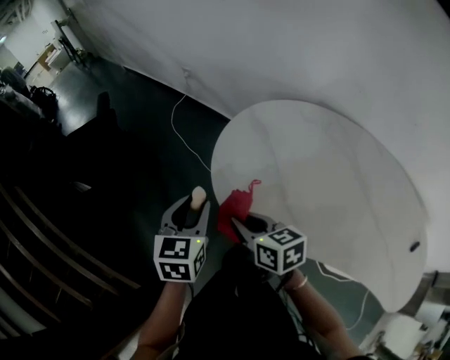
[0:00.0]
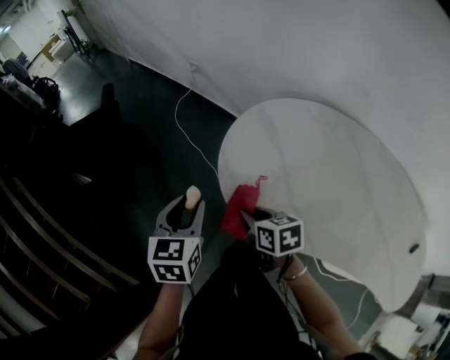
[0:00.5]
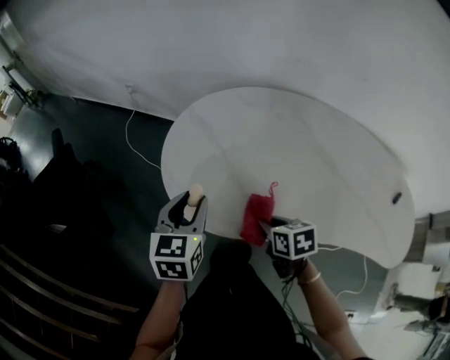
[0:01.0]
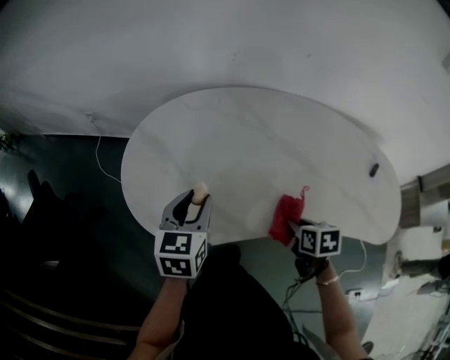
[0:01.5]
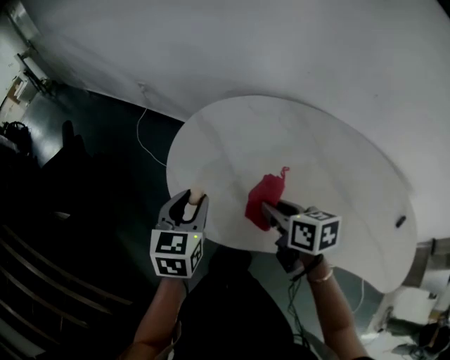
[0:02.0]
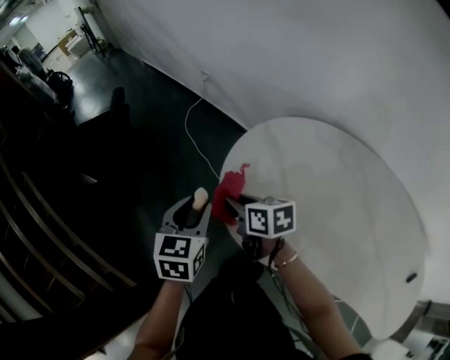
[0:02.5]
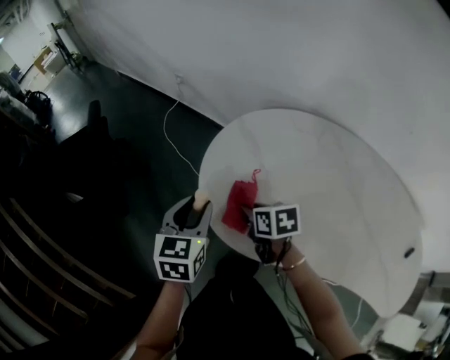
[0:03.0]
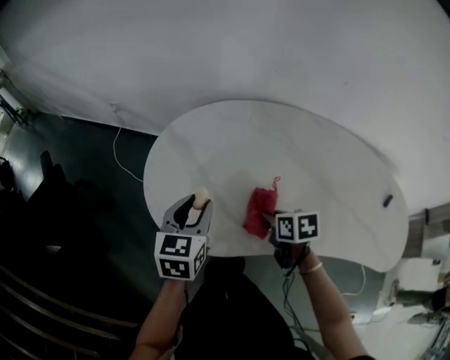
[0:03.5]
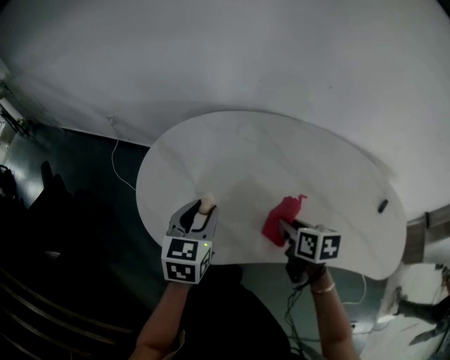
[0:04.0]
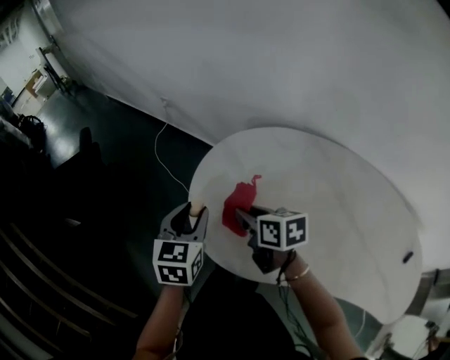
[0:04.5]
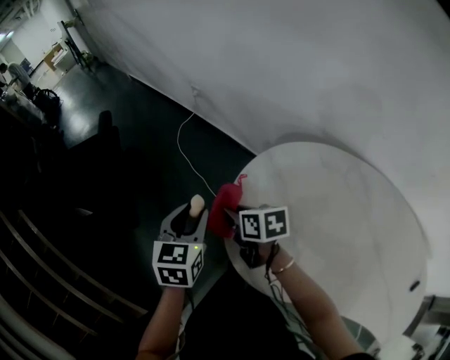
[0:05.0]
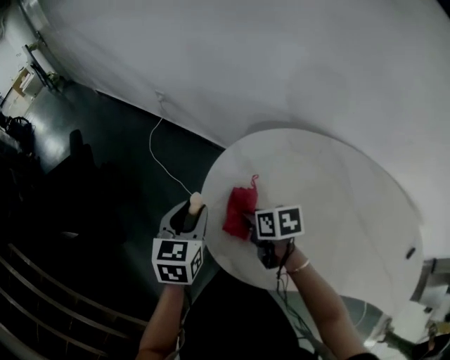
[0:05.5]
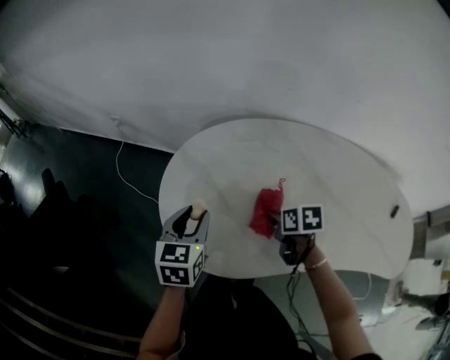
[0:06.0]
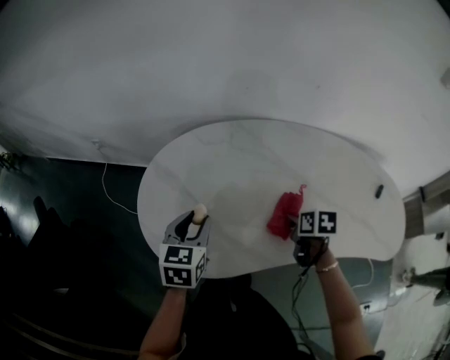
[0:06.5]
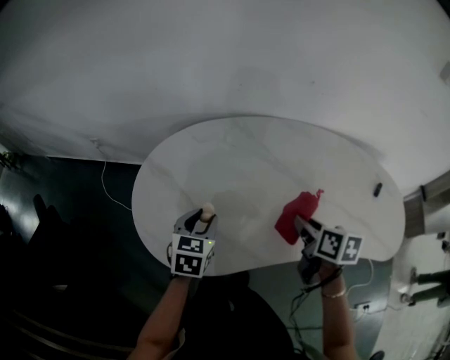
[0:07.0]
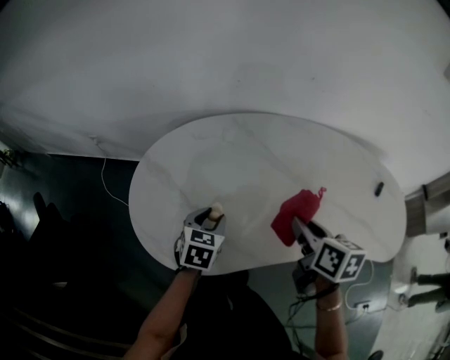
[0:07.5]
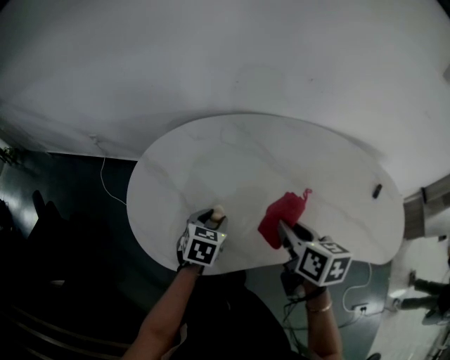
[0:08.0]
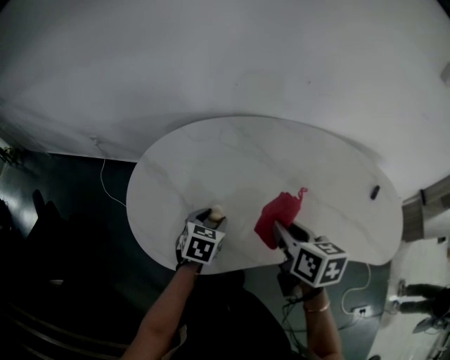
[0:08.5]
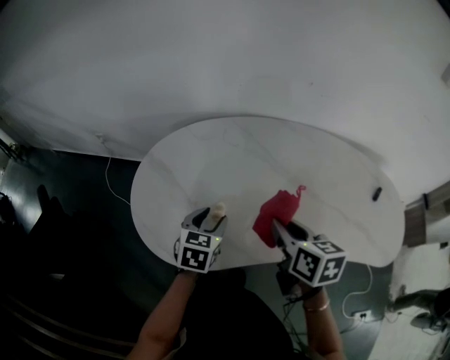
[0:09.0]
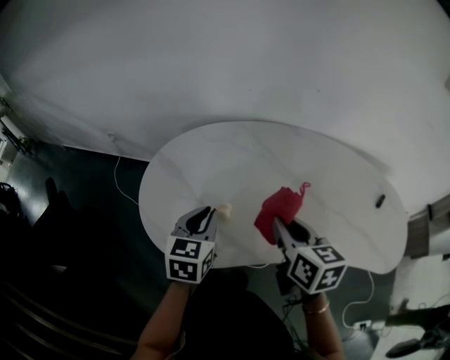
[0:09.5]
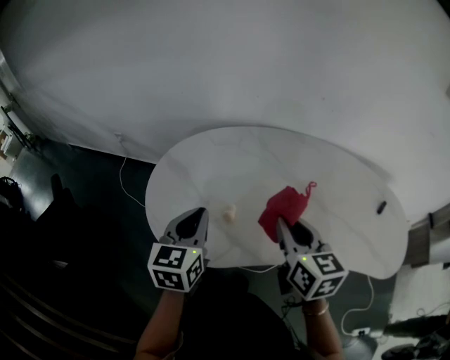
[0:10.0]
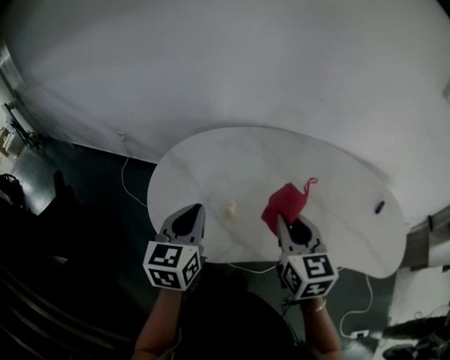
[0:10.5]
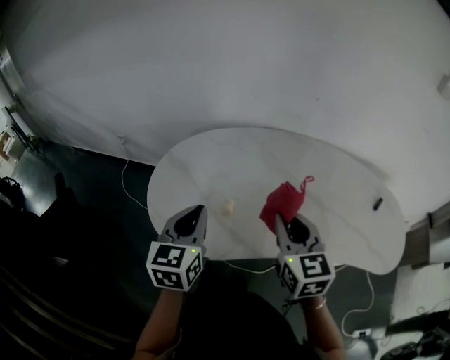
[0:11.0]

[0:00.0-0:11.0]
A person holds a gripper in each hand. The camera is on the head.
0:00.0 to 0:02.0: The right gripper goes downward and returns, roughly 10 cm each way.
0:02.0 to 0:03.5: The right gripper goes roughly 10 cm downward, and rotates roughly 20 degrees.
0:03.5 to 0:05.5: The left gripper moves about 20 cm. Meanwhile the right gripper travels upward and back again, some 10 cm each way.
0:05.5 to 0:07.5: The left gripper shifts by roughly 30 cm, and changes its angle by roughly 40 degrees. The right gripper moves some 40 cm, and rotates some 50 degrees.
0:07.5 to 0:09.0: The grippers stay close to where they were, moving slightly.
0:09.0 to 0:11.0: The right gripper heads upward, covering about 5 cm, and rotates approximately 30 degrees; the left gripper heads upward, covering some 15 cm, turns by some 20 degrees, and closes.

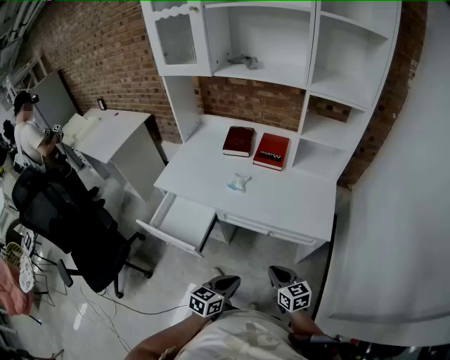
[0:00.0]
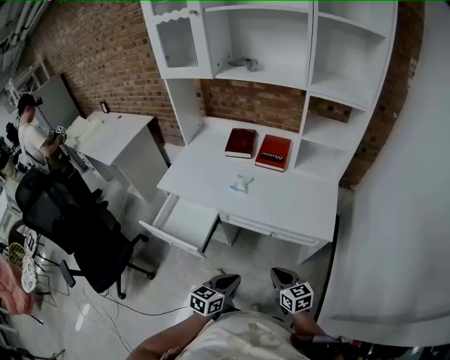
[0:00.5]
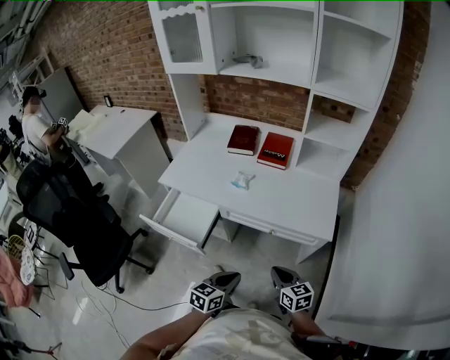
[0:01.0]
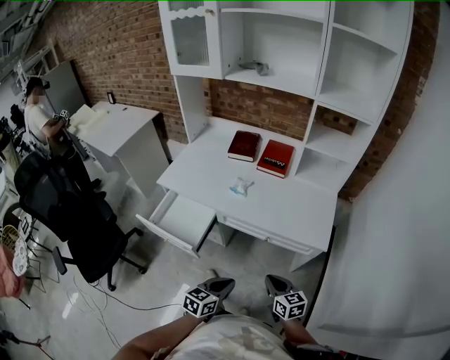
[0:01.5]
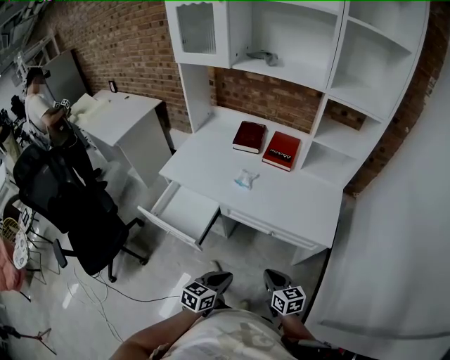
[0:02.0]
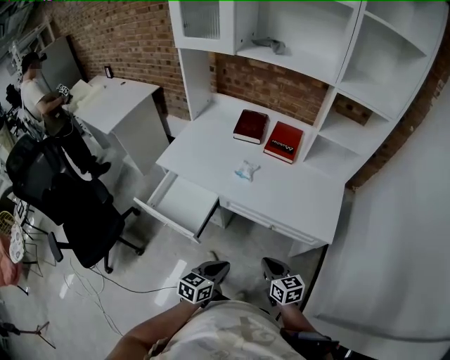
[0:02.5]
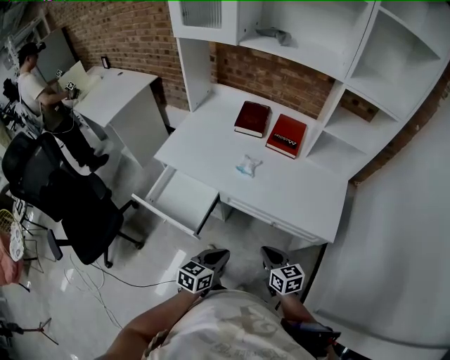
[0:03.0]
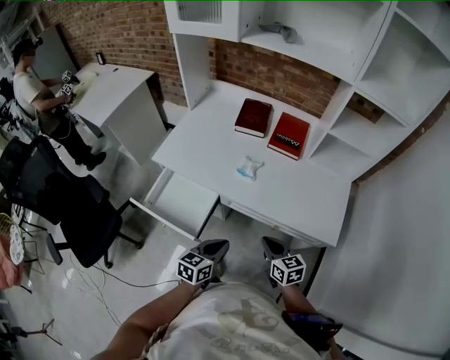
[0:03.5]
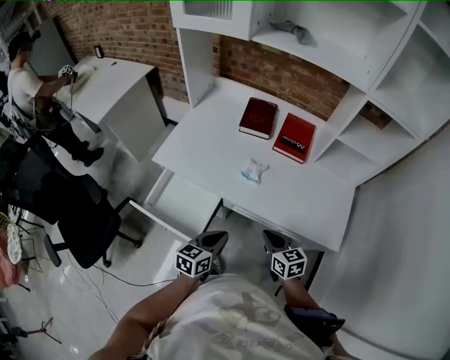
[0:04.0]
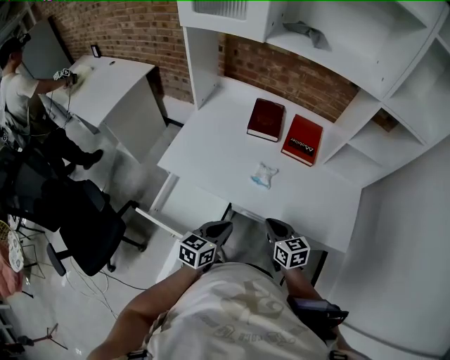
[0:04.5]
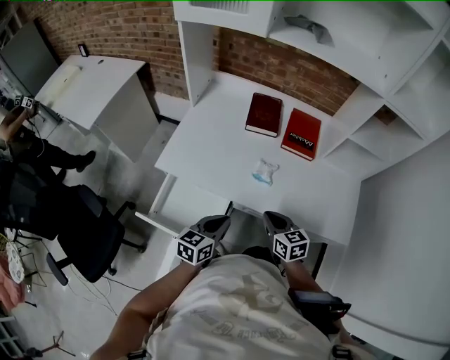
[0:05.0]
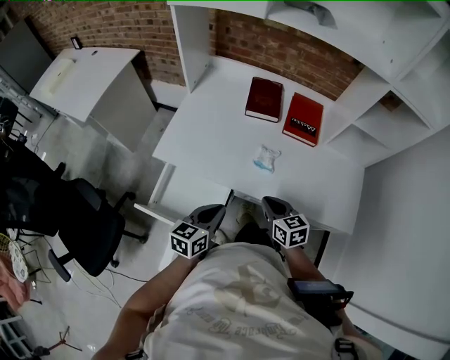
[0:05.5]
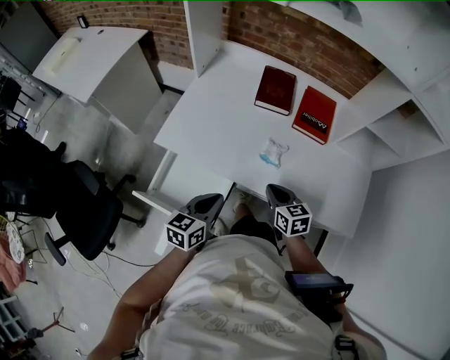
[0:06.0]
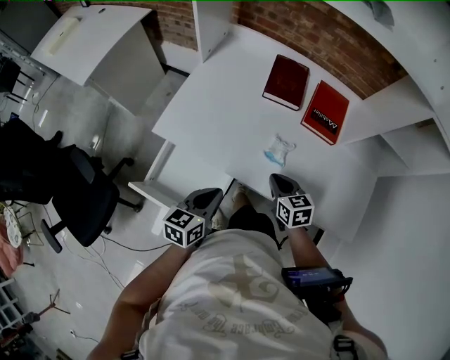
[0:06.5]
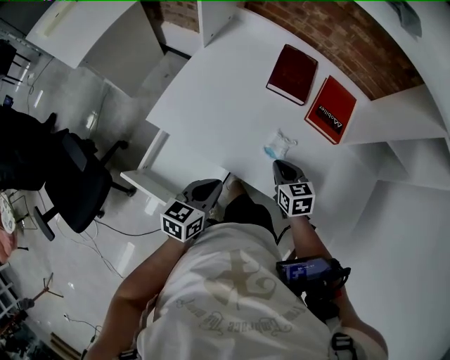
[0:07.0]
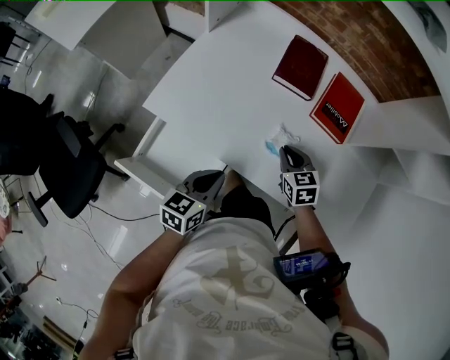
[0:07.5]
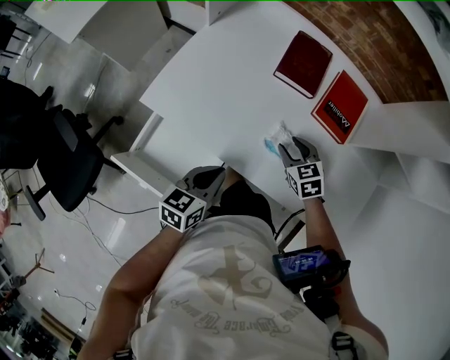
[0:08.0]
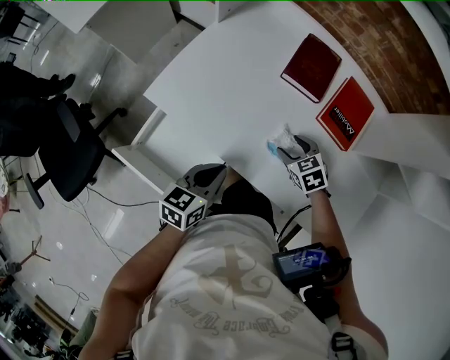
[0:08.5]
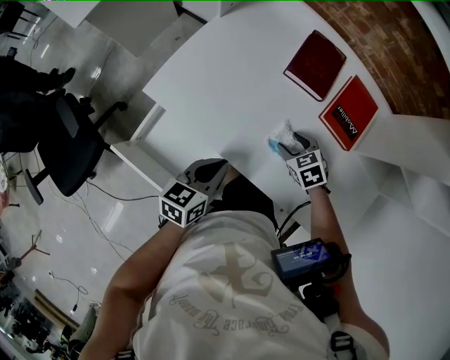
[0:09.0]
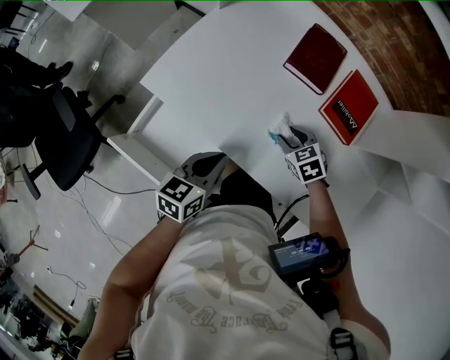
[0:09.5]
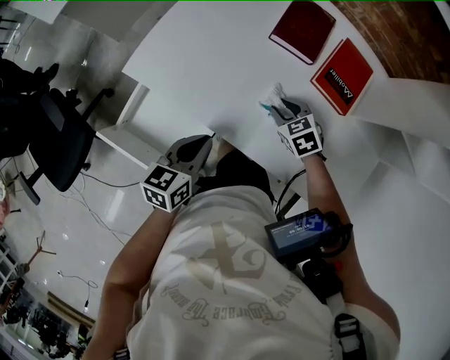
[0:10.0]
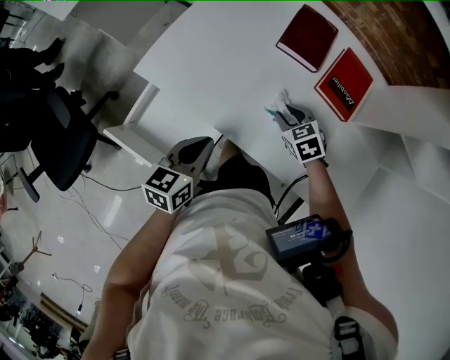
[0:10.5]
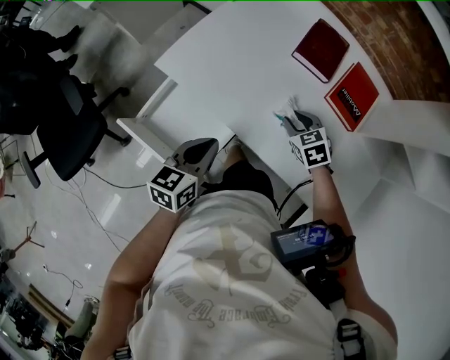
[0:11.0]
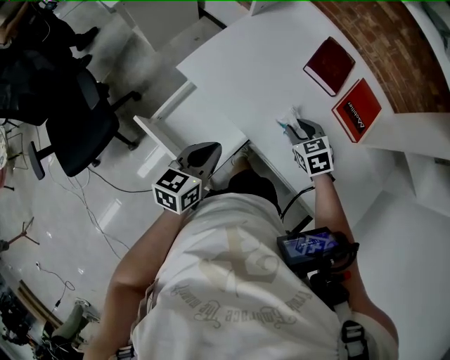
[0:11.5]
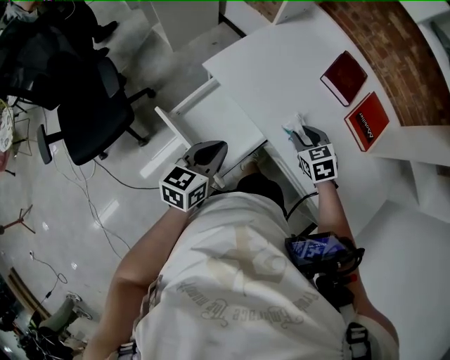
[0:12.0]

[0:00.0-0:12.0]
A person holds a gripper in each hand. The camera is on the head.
0:00.0 to 0:02.0: The grippers move only a little.
0:02.0 to 0:04.0: The two grippers go about 20 cm forward and to the left.
0:04.0 to 0:06.0: The left gripper is displaced to the left and forward by some 15 cm. Meanwhile the right gripper shifts some 15 cm forward and to the left.
0:06.0 to 0:08.0: The right gripper moves forward, approximately 15 cm, swivels about 30 degrees, and opens. The left gripper travels forward by about 5 cm.
0:08.0 to 0:10.0: The grippers move only a little.
0:10.0 to 0:12.0: The left gripper heads to the left and backward, covering some 15 cm. Meanwhile the right gripper travels to the left, upward and backward by roughly 15 cm.

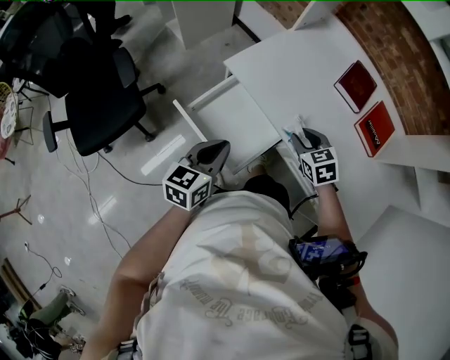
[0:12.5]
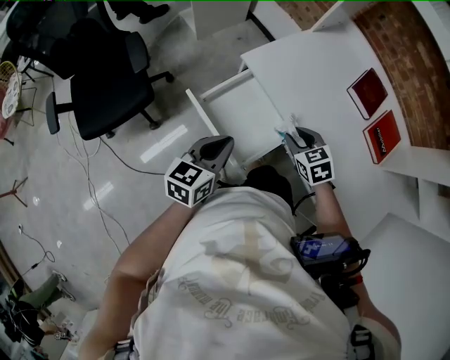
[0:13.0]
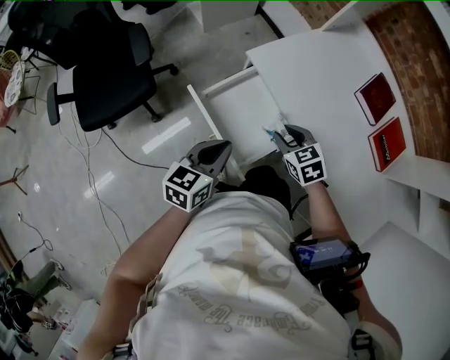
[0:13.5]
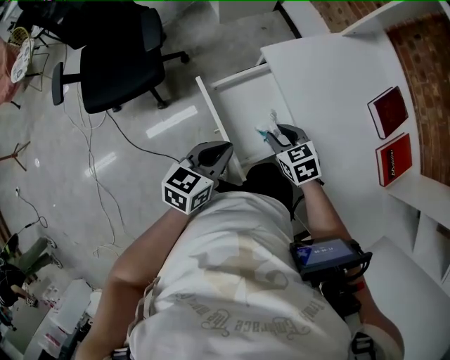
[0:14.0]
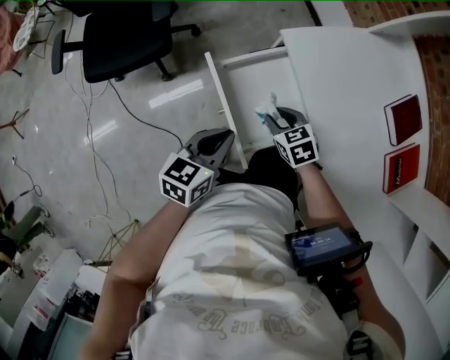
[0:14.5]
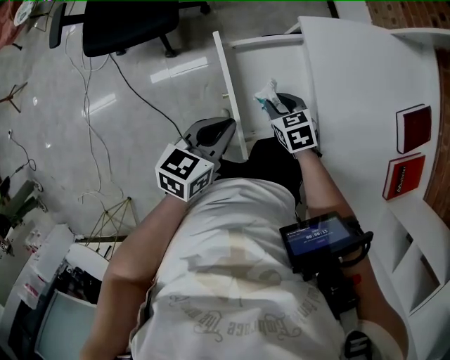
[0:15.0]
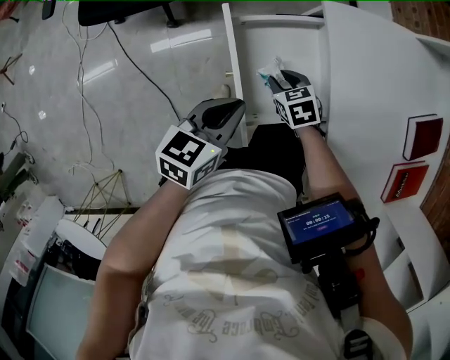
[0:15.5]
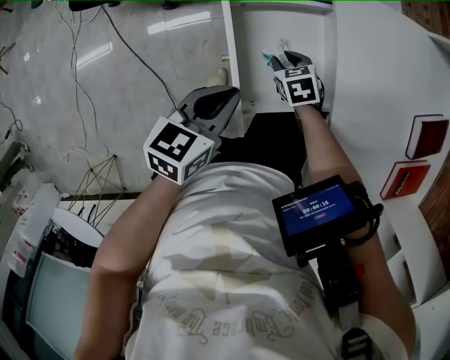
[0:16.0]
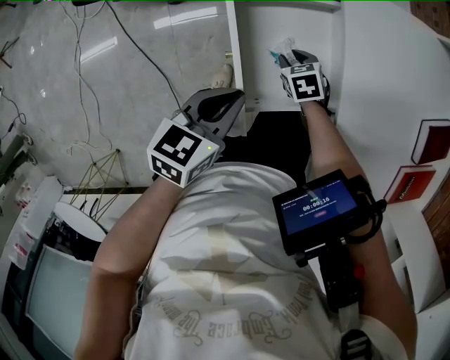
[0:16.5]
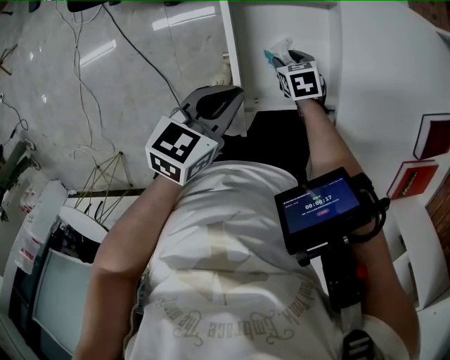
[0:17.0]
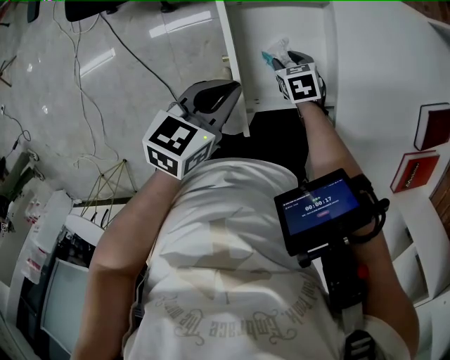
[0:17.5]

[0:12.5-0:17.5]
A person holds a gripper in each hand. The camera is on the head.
0:12.5 to 0:15.0: The left gripper goes about 5 cm downward, and swivels about 20 degrees, while the right gripper ends up roughly 25 cm from where it was, and changes its angle by some 30 degrees.
0:15.0 to 0:17.5: The right gripper goes approximately 10 cm downward.
